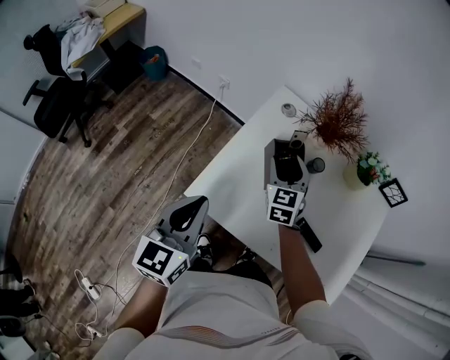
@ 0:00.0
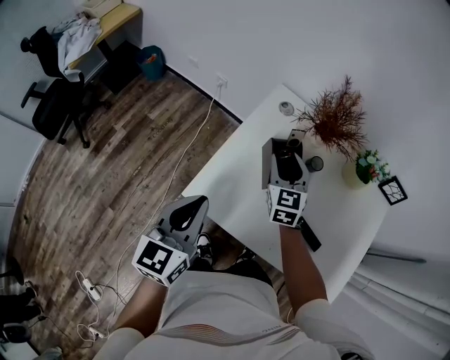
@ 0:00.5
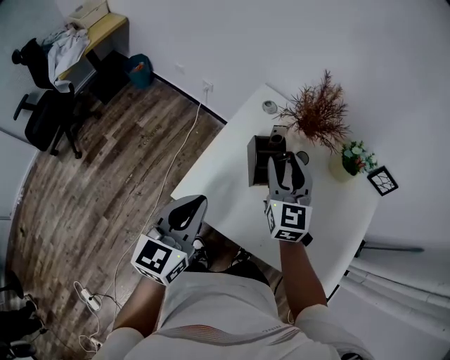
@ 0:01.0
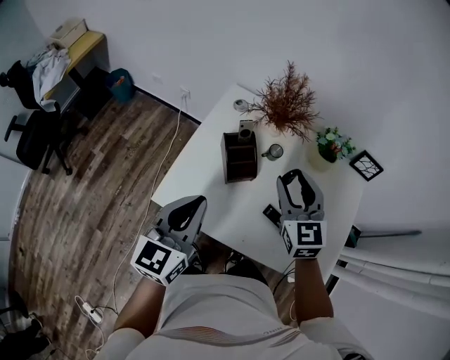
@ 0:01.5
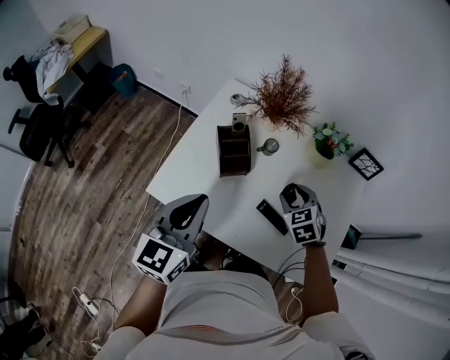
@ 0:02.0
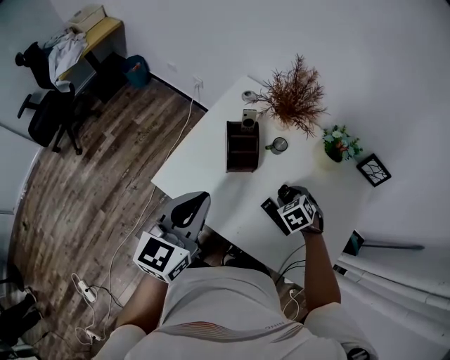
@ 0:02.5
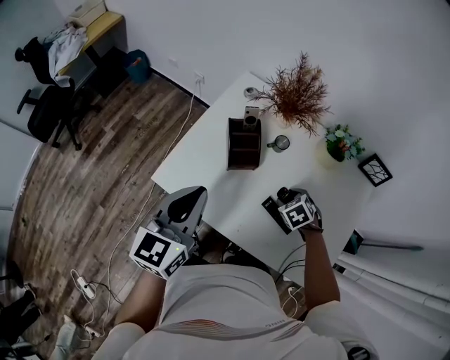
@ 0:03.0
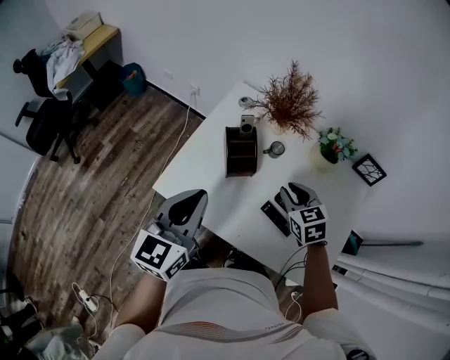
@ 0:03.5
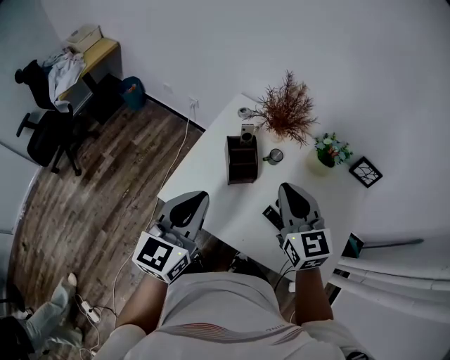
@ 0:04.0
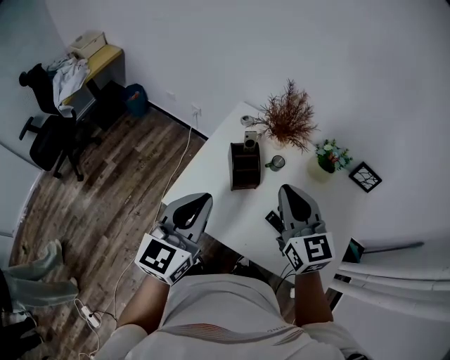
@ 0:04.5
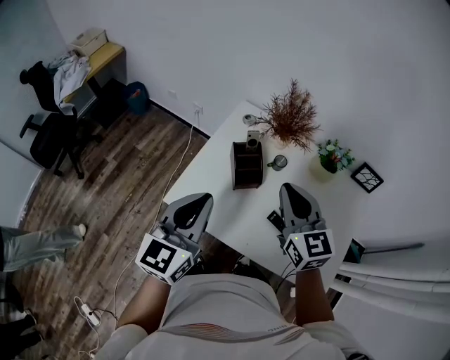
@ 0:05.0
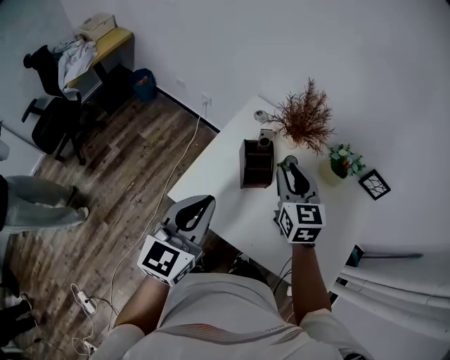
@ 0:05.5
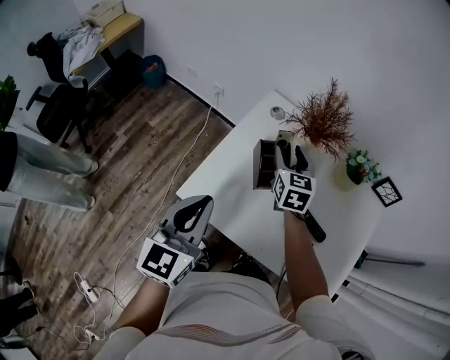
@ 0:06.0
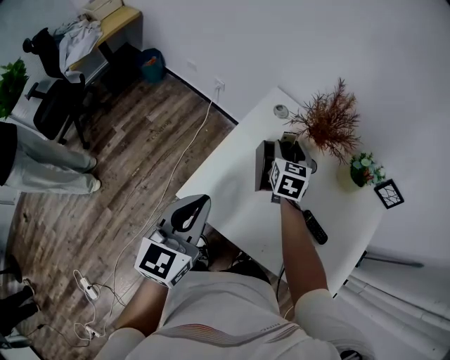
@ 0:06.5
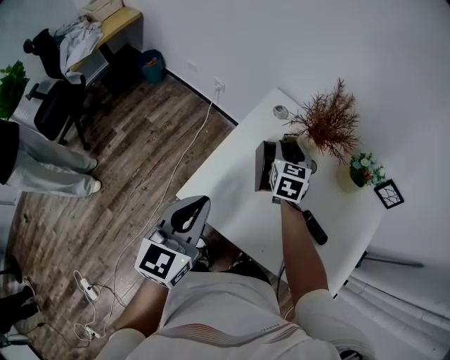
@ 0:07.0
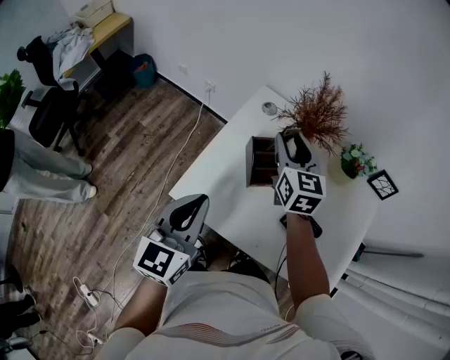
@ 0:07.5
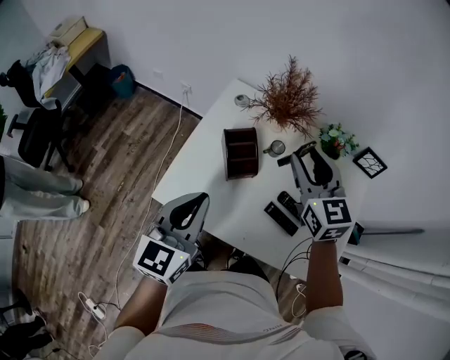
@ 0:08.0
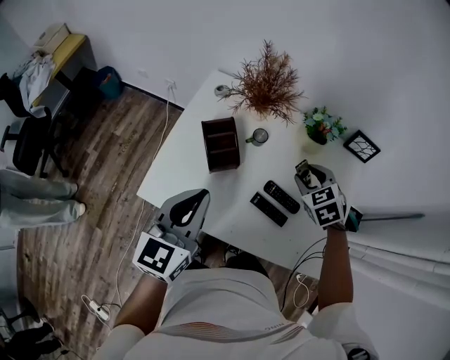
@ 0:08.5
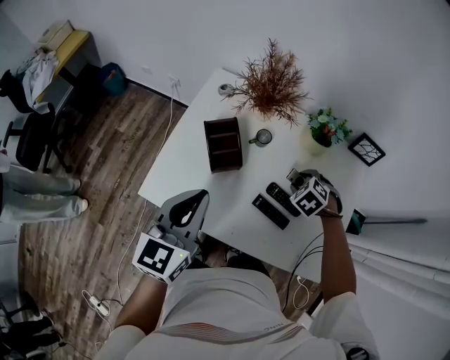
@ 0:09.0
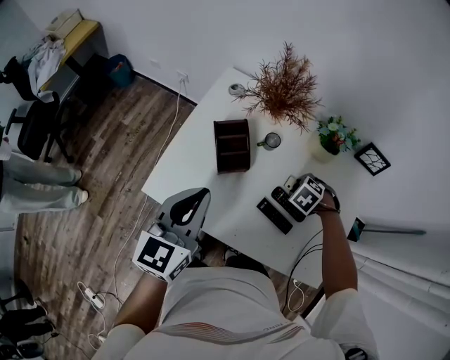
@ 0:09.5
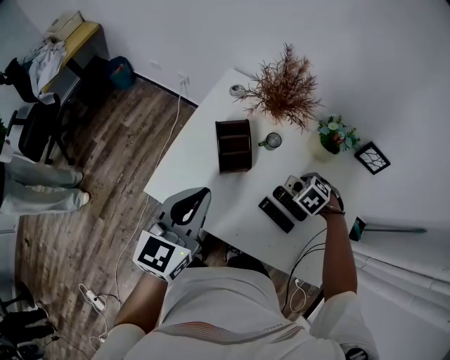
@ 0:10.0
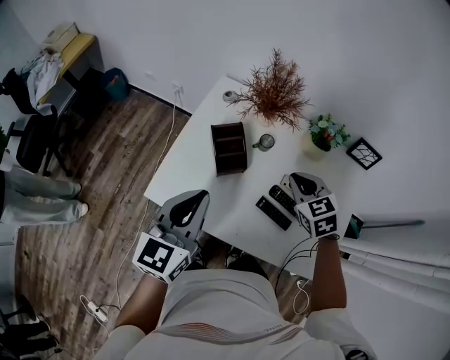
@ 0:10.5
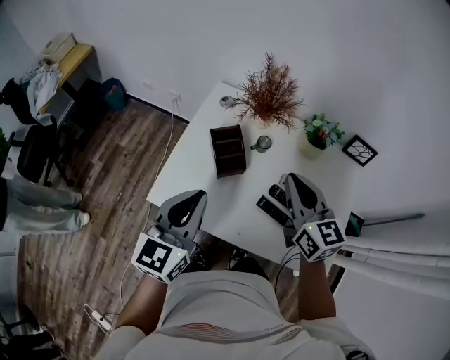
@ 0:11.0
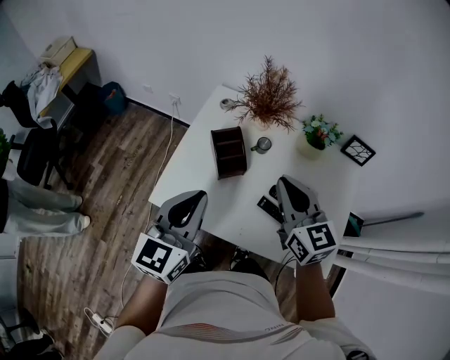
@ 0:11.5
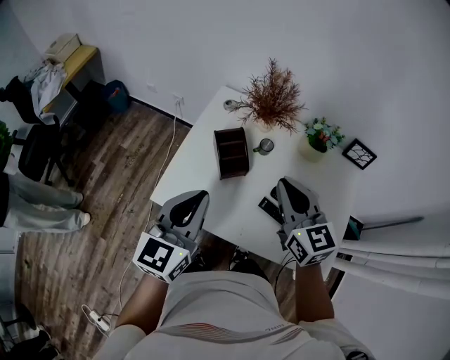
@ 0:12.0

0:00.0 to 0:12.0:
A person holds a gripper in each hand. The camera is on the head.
0:00.0 to 0:02.0: The right gripper is displaced to the right and backward by some 25 cm, and swivels roughly 30 degrees. The left gripper is displaced to the right by roughly 15 cm.
0:02.0 to 0:04.0: The right gripper is displaced upward and to the left by approximately 20 cm, angles its fingers upward, by about 40 degrees, and closes. The left gripper moves some 5 cm.
0:04.0 to 0:06.0: The left gripper shifts roughly 5 cm to the left, while the right gripper goes roughly 20 cm forward, downward and to the left, and opens.
0:06.0 to 0:08.0: The left gripper moves to the right, about 5 cm. The right gripper is displaced upward, to the right and backward by approximately 15 cm.
0:08.0 to 0:10.0: The right gripper goes some 25 cm downward, and tilts its fingers approximately 60 degrees downward.
0:10.0 to 0:12.0: The right gripper goes roughly 25 cm upward, tilts its fingers approximately 70 degrees upward, and closes its fingers. Meanwhile the left gripper changes place by roughly 5 cm.

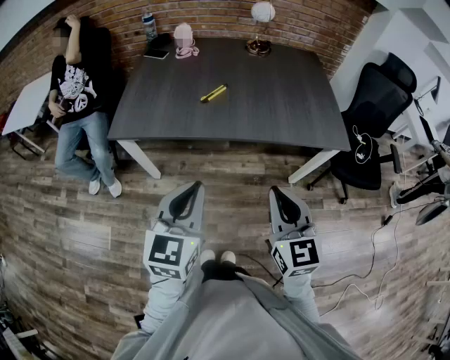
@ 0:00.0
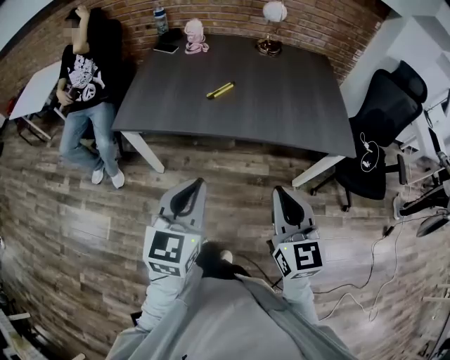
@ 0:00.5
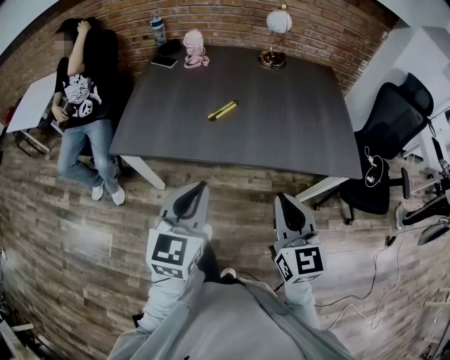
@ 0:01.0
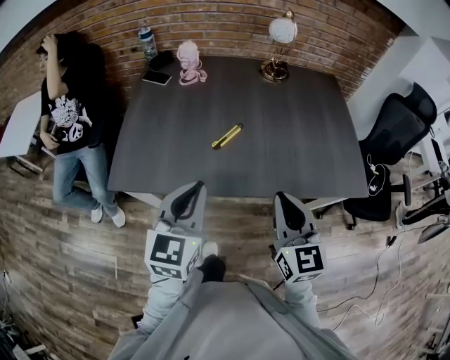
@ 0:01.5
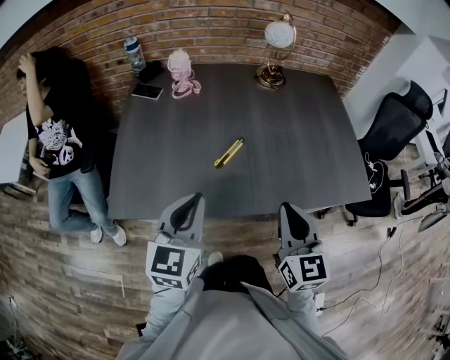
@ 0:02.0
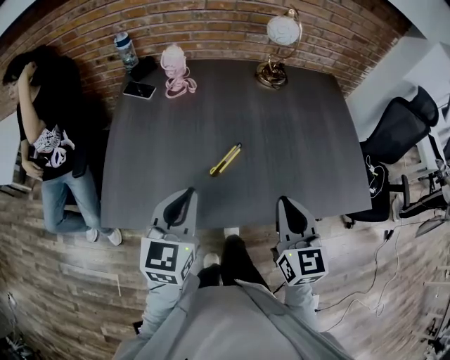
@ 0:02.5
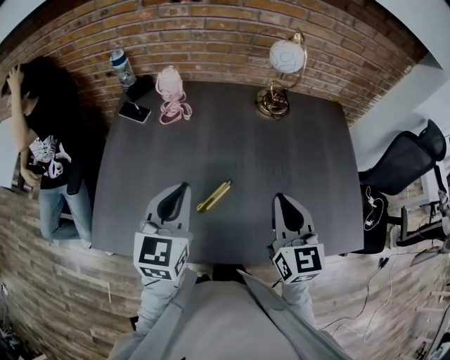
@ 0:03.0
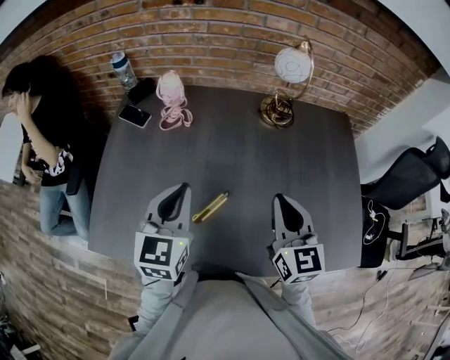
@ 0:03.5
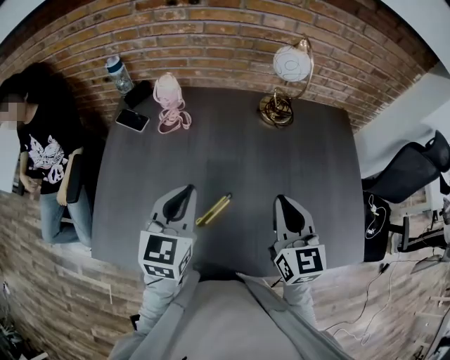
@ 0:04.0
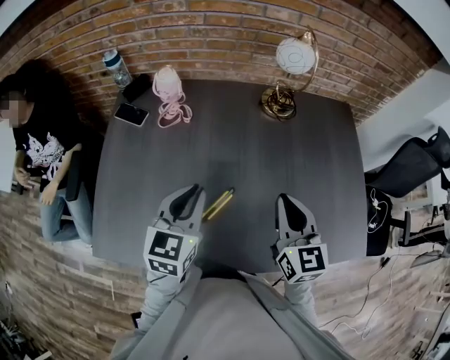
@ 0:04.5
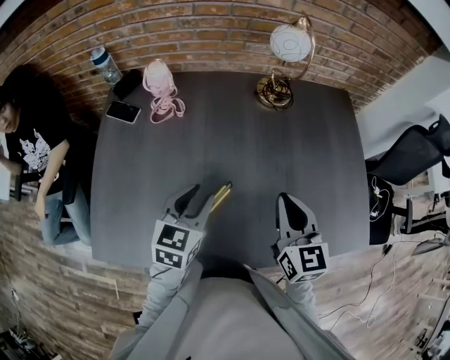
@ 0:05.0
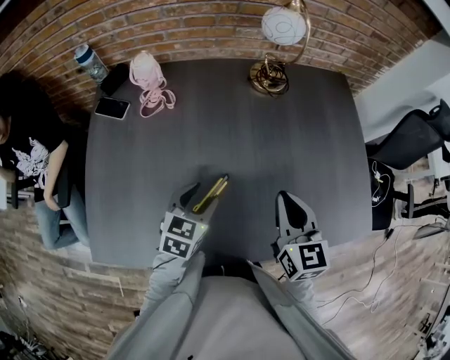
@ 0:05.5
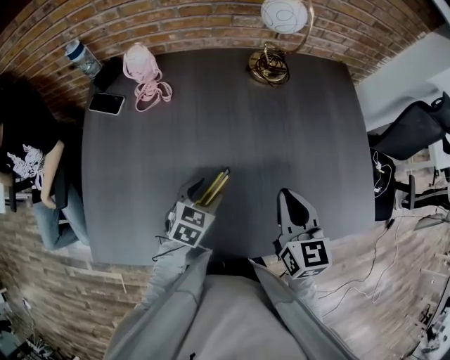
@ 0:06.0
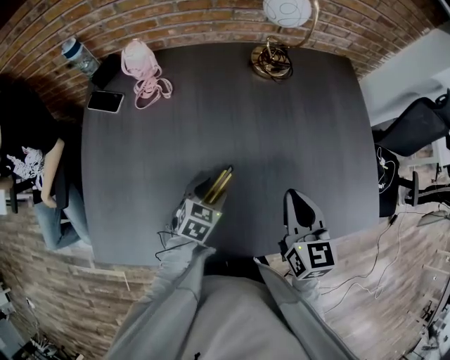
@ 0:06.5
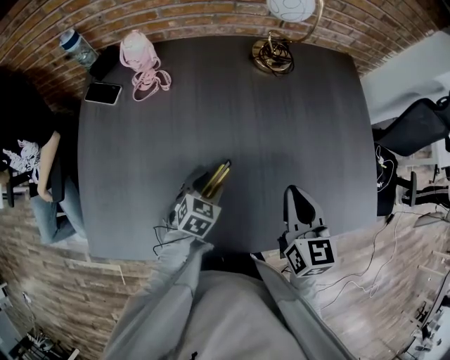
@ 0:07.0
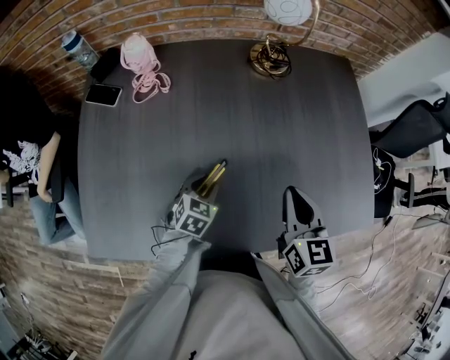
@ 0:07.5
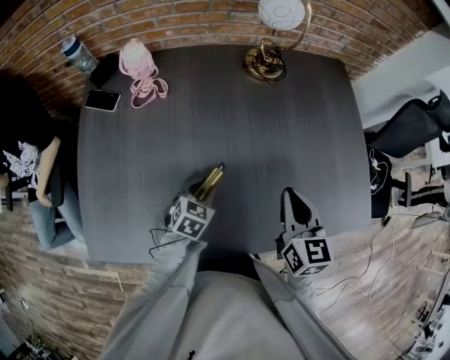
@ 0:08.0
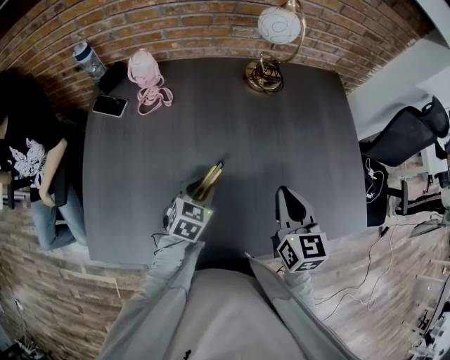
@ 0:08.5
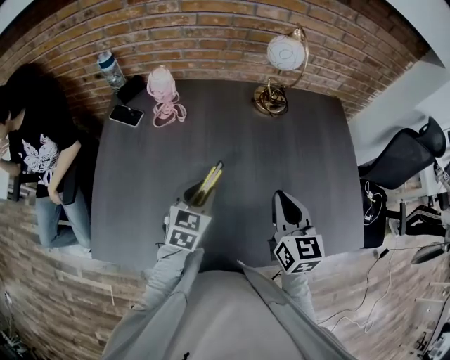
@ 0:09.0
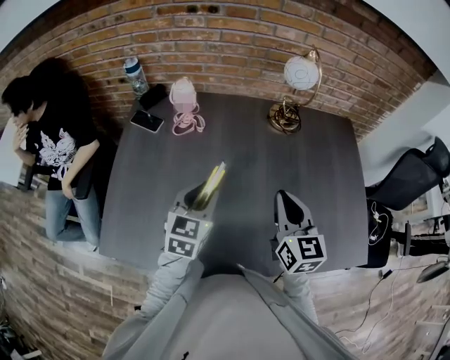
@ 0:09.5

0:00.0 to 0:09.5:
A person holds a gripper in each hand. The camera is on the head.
0:00.0 to 0:02.0: Both grippers travel together forward, some 30 cm.
0:02.0 to 0:04.0: Both grippers move forward, roughly 25 cm.
0:04.0 to 0:05.5: The left gripper travels downward by some 15 cm, rotates some 30 degrees, and opens up; the right gripper travels downward by approximately 5 cm.
0:05.5 to 0:07.5: The left gripper travels downward by about 10 cm.
0:07.5 to 0:09.5: The right gripper is displaced upward and to the left by approximately 10 cm. Meanwhile the left gripper travels upward by some 20 cm, and turns by some 30 degrees.

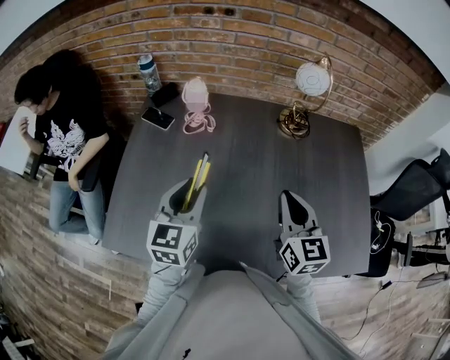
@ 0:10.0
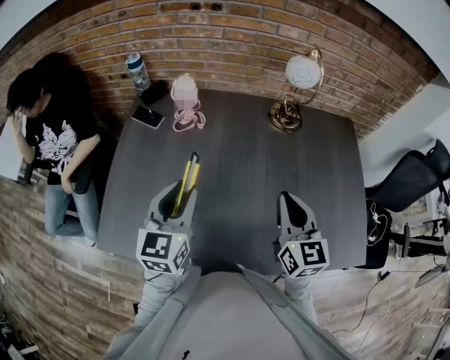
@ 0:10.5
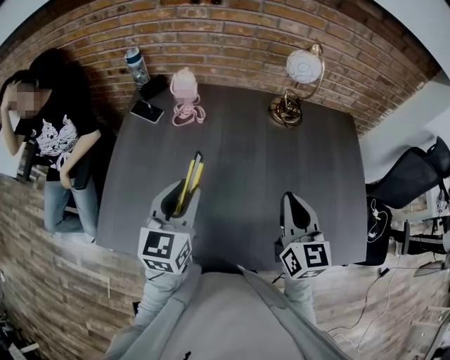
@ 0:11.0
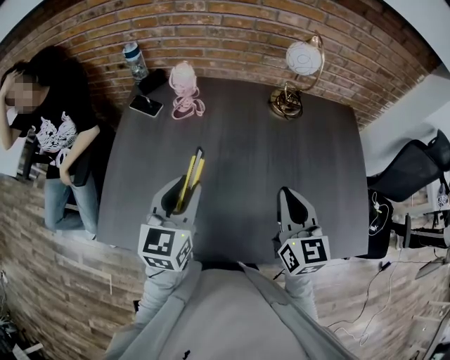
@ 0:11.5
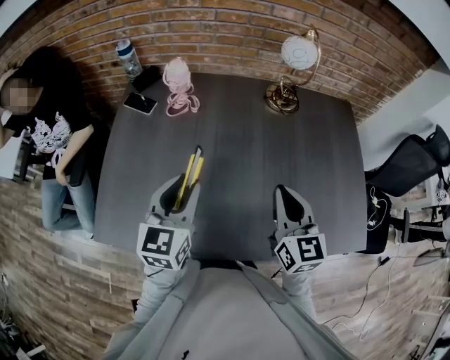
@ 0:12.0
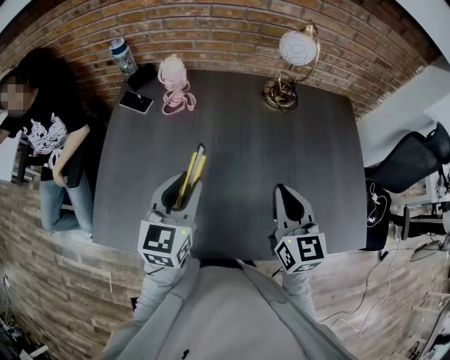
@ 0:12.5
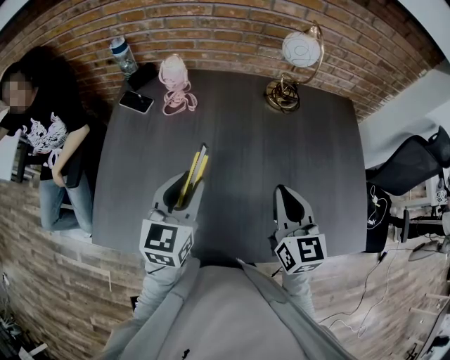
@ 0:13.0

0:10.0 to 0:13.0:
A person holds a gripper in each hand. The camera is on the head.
0:10.0 to 0:13.0: The grippers stay close to where they were, moving slightly.

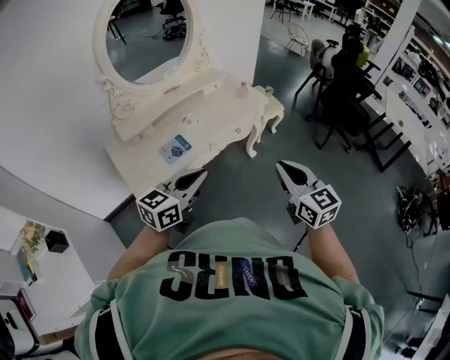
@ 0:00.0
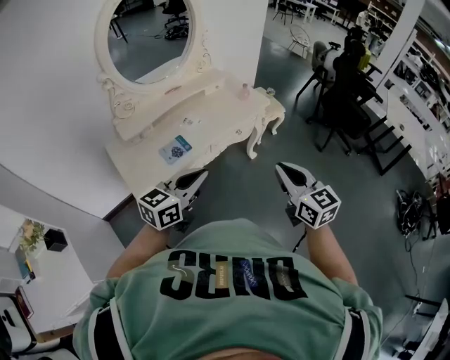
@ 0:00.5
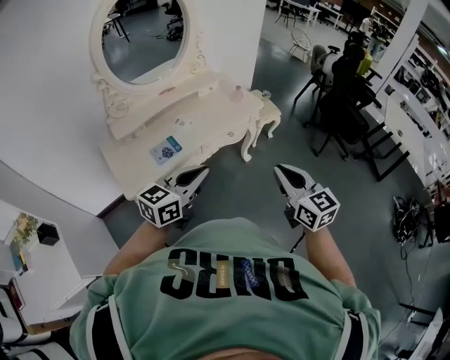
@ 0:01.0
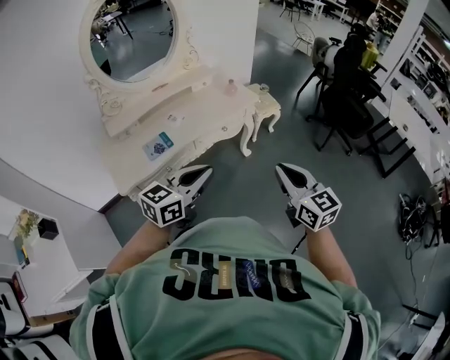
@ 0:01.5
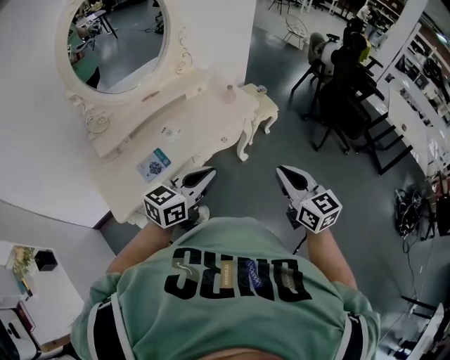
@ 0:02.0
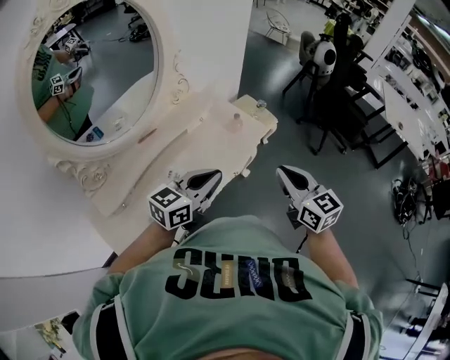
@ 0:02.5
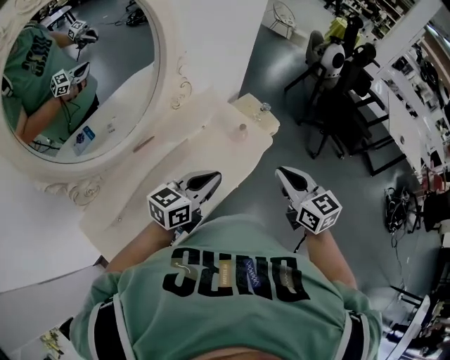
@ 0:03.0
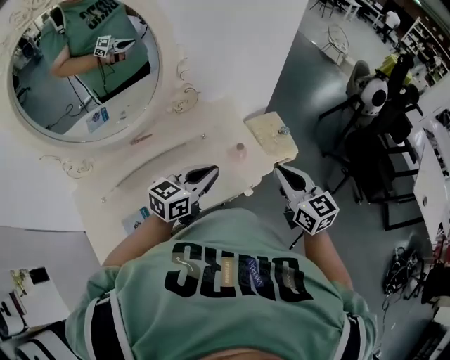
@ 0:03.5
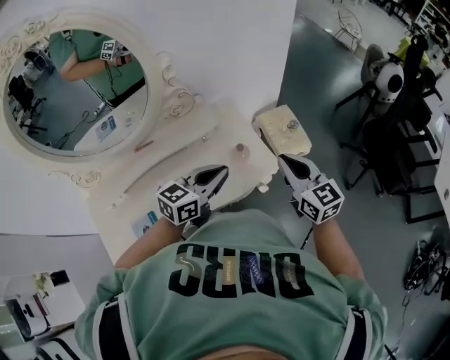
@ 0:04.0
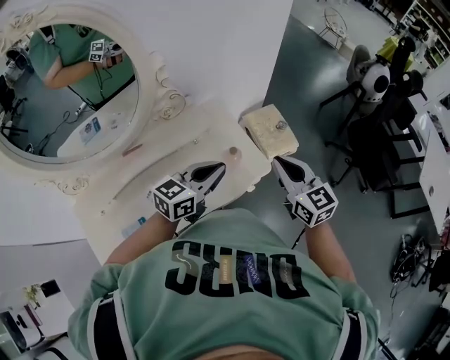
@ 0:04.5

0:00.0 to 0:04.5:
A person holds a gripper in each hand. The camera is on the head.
0:00.0 to 0:02.0: Both grippers travel together forward and to the right, roughly 15 cm.
0:02.0 to 0:04.5: The grippers both shift forward by some 40 cm.
